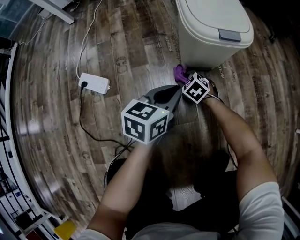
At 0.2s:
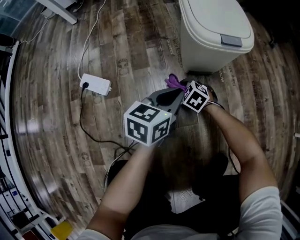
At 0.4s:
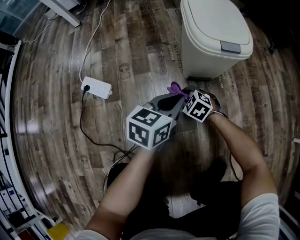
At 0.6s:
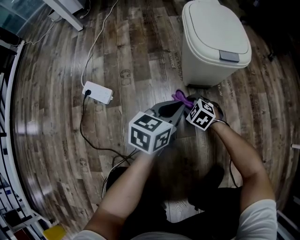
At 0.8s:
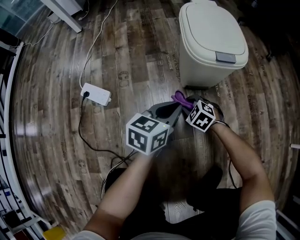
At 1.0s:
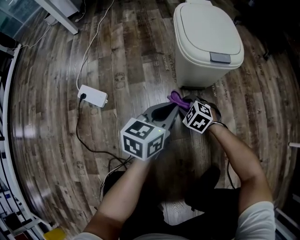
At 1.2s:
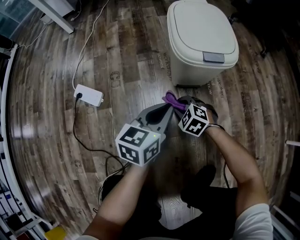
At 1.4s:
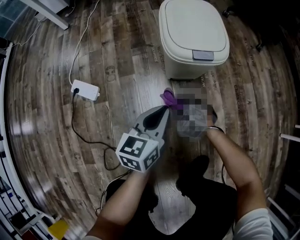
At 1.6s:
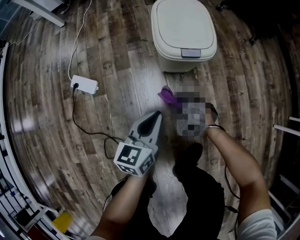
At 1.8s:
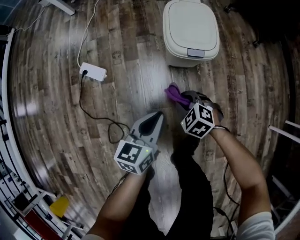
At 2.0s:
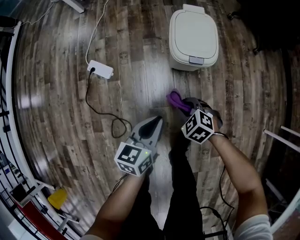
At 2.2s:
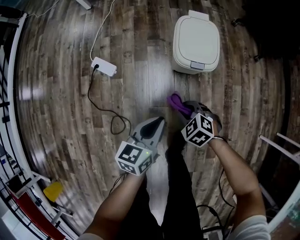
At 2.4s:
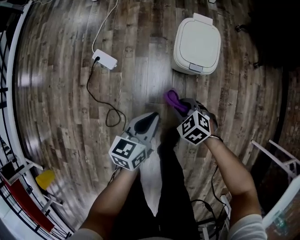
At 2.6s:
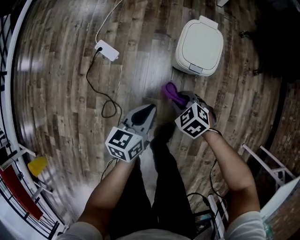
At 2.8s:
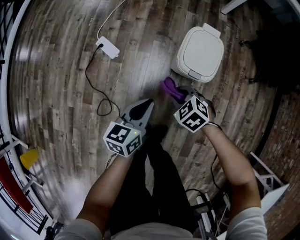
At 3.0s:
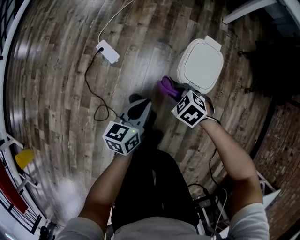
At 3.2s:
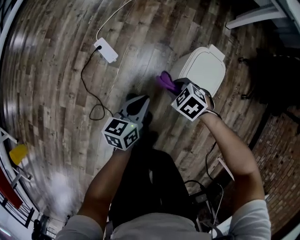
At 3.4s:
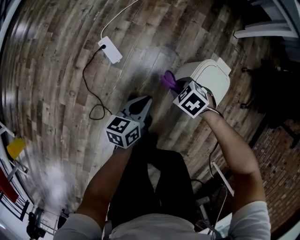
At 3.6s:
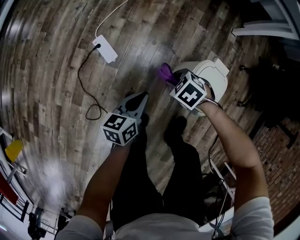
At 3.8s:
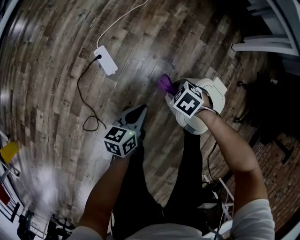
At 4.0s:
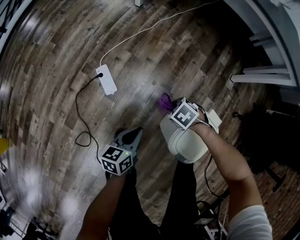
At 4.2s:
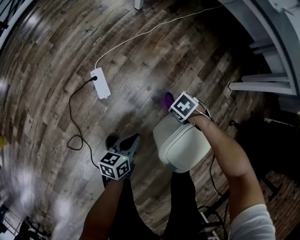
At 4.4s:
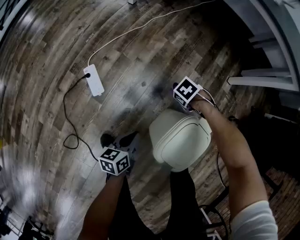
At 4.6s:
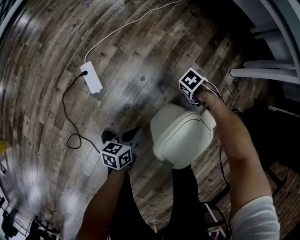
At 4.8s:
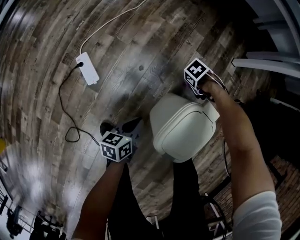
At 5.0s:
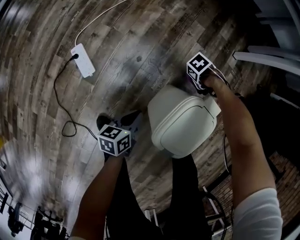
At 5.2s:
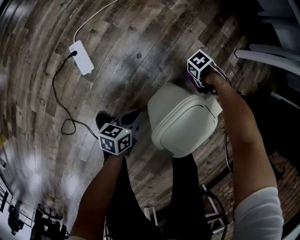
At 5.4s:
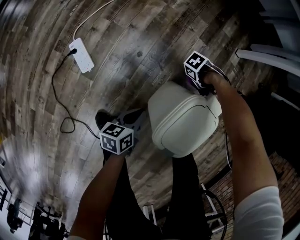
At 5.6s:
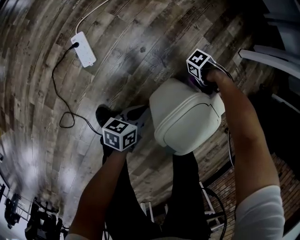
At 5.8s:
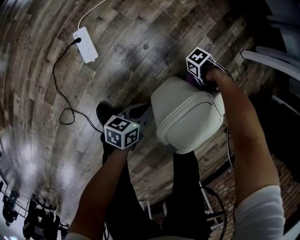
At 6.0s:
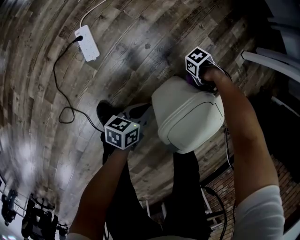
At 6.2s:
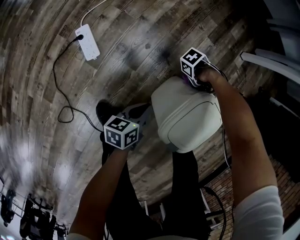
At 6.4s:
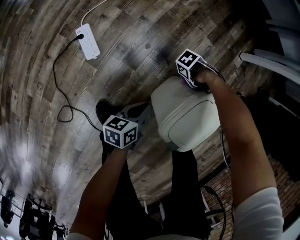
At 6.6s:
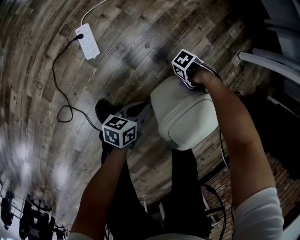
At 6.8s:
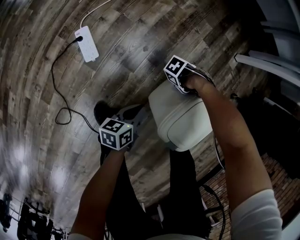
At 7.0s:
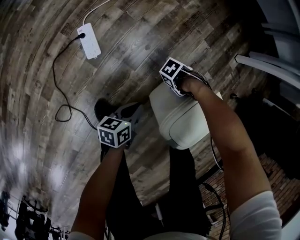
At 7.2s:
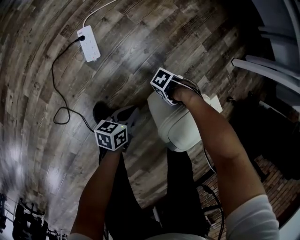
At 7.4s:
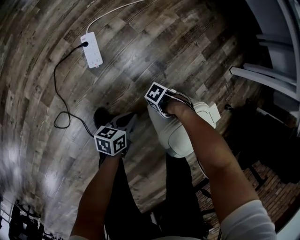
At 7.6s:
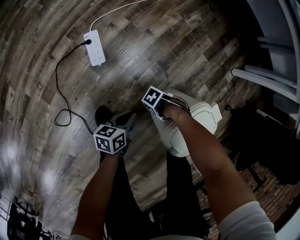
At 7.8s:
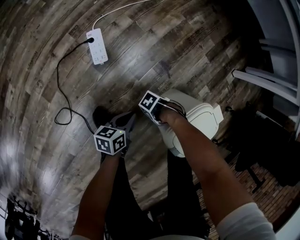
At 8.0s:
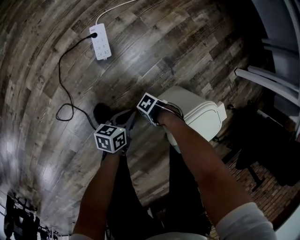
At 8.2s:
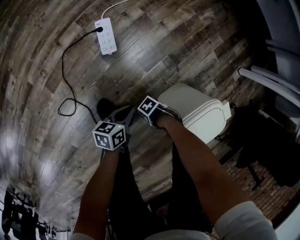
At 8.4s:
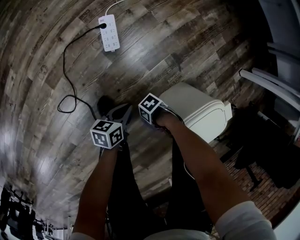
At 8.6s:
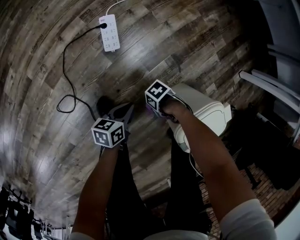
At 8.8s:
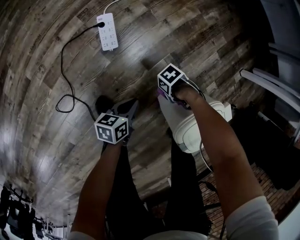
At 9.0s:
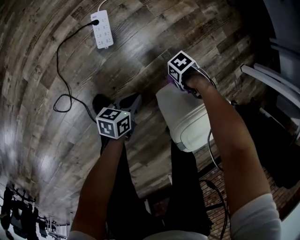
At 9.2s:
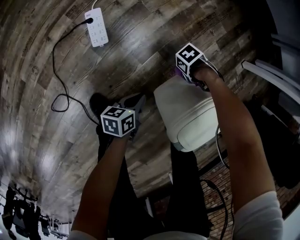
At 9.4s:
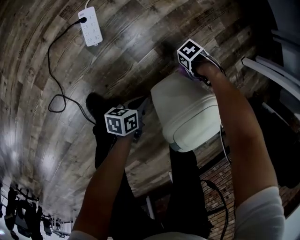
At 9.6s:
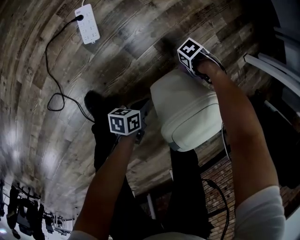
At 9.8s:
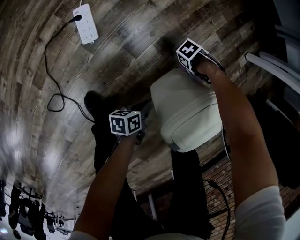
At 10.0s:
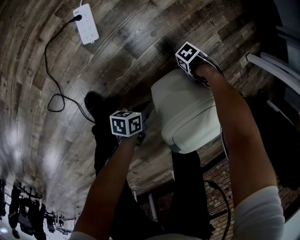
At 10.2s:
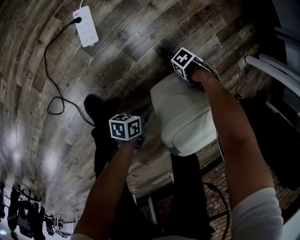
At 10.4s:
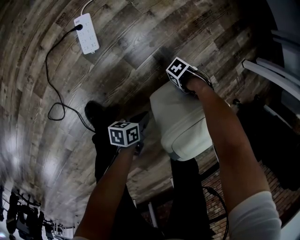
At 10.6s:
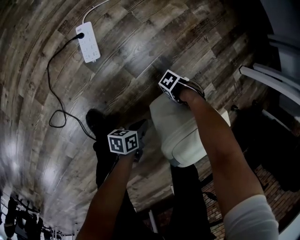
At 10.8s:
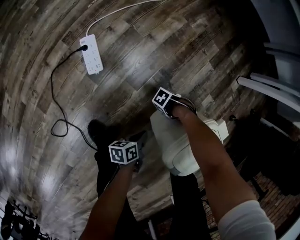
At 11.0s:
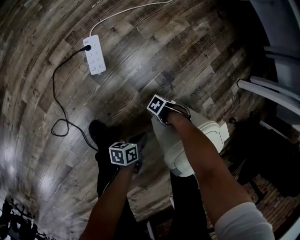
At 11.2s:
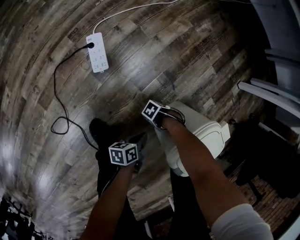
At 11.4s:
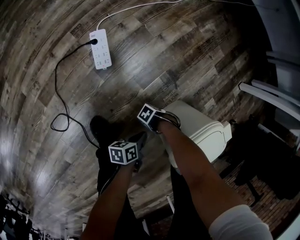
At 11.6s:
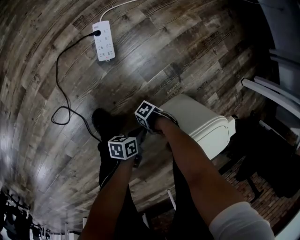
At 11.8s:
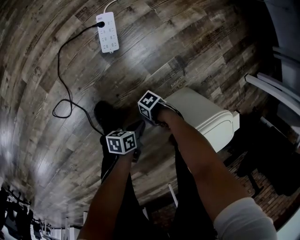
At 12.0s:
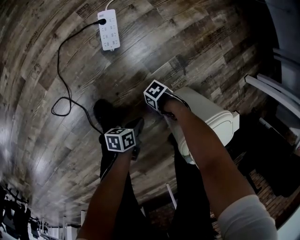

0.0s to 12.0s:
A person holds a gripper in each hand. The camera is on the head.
0.0s to 1.6s: The left gripper travels upward by some 10 cm.
1.6s to 3.0s: The left gripper goes roughly 20 cm upward, and swivels approximately 20 degrees.
3.0s to 4.4s: The left gripper travels downward by about 15 cm, and swivels roughly 30 degrees.
4.4s to 6.0s: The left gripper is displaced downward by roughly 5 cm.
6.0s to 7.6s: The left gripper moves roughly 10 cm.
9.0s to 10.4s: The left gripper shifts by about 15 cm.
10.4s to 12.0s: The left gripper moves approximately 10 cm.

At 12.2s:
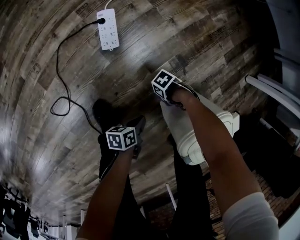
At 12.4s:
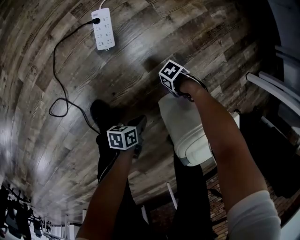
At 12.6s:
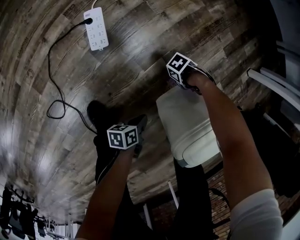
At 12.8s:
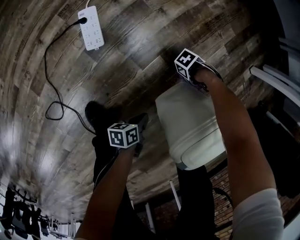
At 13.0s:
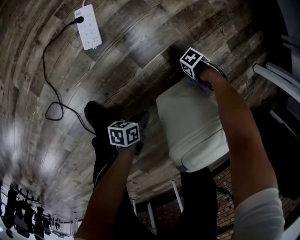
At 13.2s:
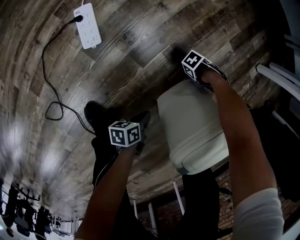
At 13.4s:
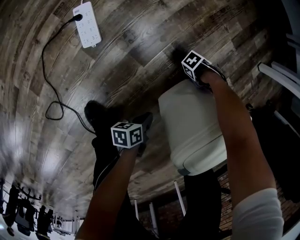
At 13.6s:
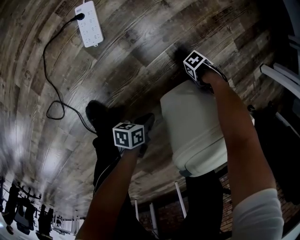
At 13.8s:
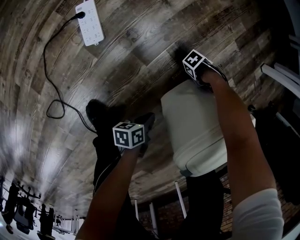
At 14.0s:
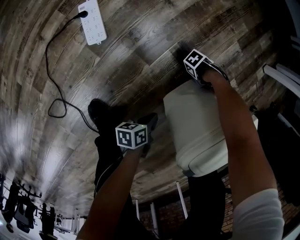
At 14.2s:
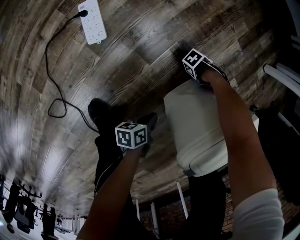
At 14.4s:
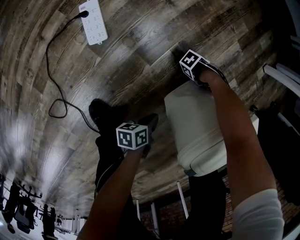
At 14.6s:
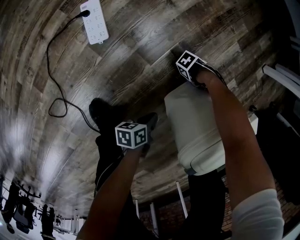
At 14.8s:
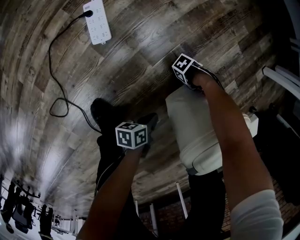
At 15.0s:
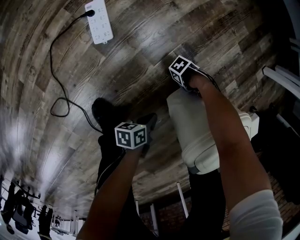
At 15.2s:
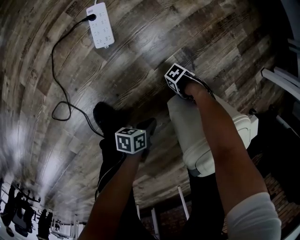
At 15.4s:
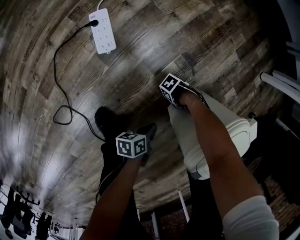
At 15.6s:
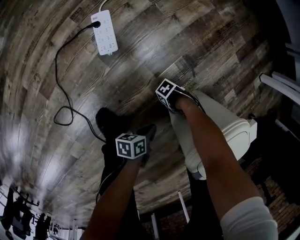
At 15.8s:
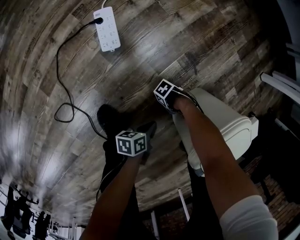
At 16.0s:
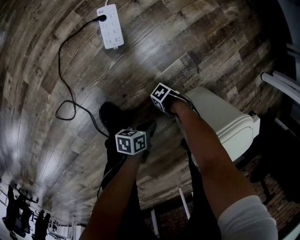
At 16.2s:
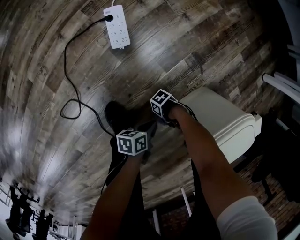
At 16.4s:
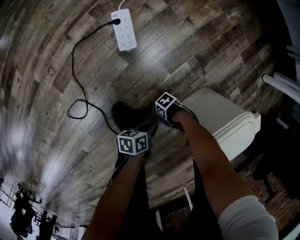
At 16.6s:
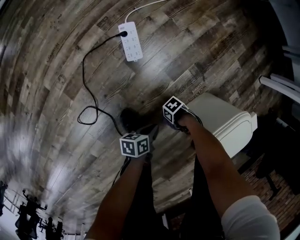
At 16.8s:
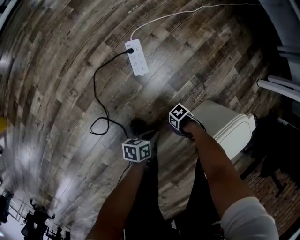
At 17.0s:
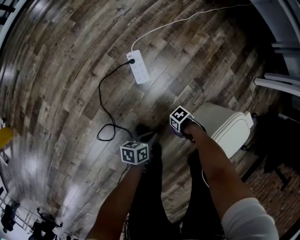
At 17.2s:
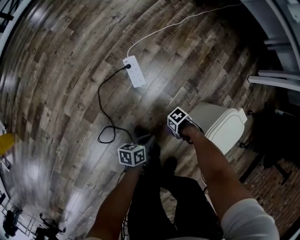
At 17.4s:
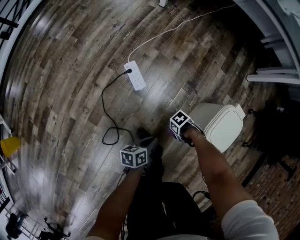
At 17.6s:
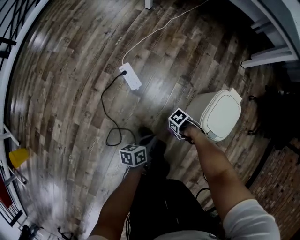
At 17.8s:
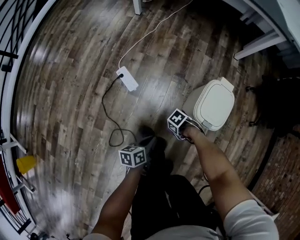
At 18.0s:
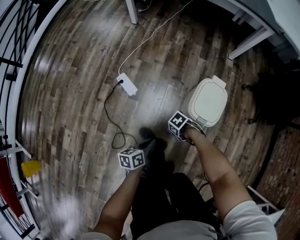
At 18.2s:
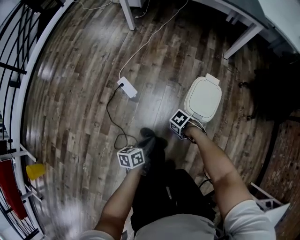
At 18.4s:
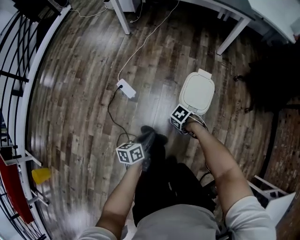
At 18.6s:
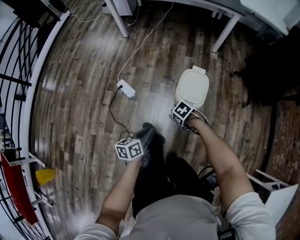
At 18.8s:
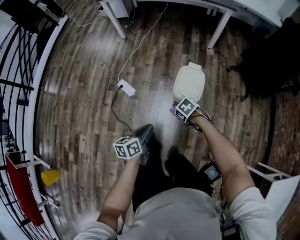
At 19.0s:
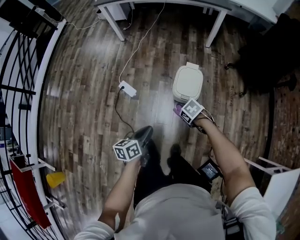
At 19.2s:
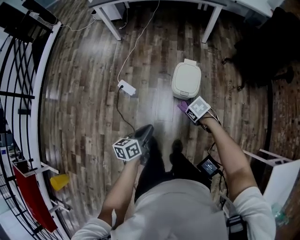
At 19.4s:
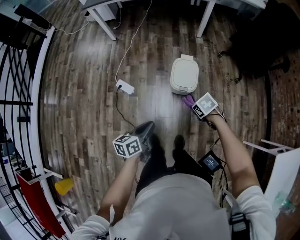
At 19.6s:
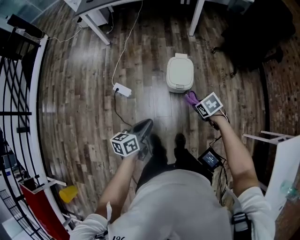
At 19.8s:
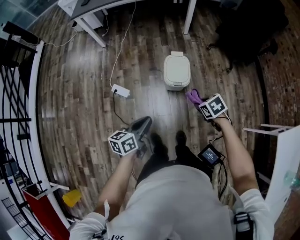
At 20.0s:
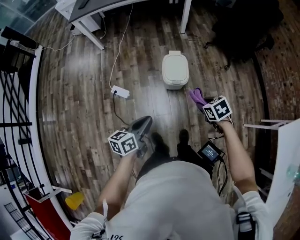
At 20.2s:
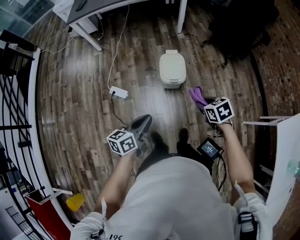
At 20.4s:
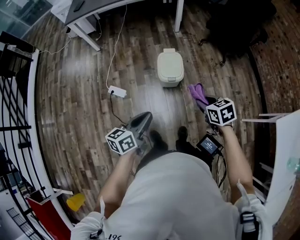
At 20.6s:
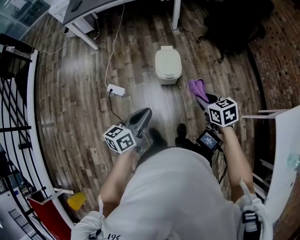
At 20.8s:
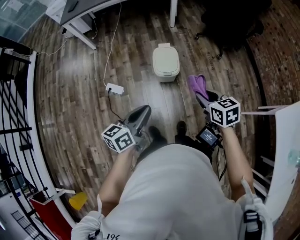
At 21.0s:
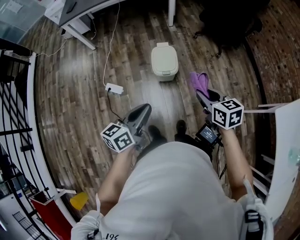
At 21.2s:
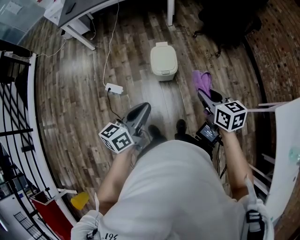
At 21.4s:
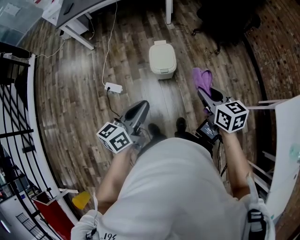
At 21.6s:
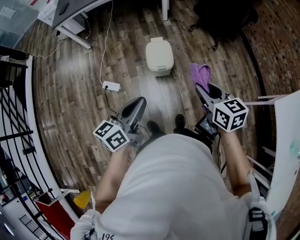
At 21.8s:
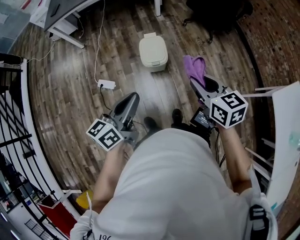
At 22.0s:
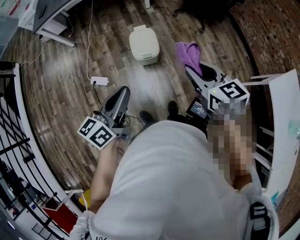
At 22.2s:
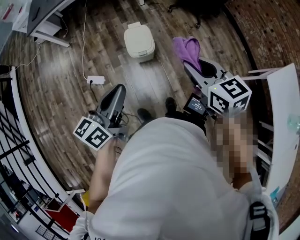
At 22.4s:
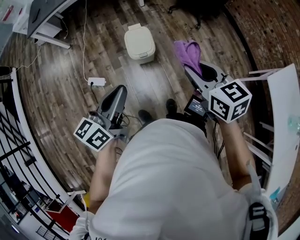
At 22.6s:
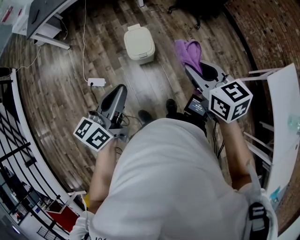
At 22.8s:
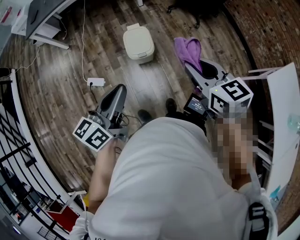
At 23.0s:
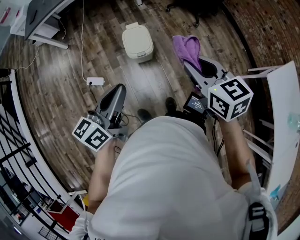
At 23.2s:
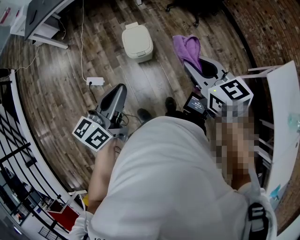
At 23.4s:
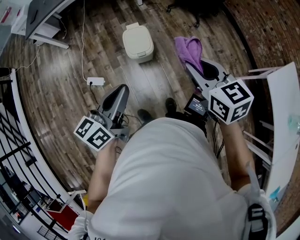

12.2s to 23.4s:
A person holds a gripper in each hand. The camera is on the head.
12.2s to 13.8s: The left gripper changes place by about 10 cm.
15.4s to 17.0s: The left gripper ends up about 25 cm from where it was.
17.0s to 18.6s: The left gripper shifts roughly 35 cm upward, and rotates about 30 degrees.
18.6s to 20.2s: The left gripper shifts roughly 20 cm upward, and changes its angle by roughly 30 degrees.
20.2s to 21.8s: The left gripper moves upward, approximately 10 cm.

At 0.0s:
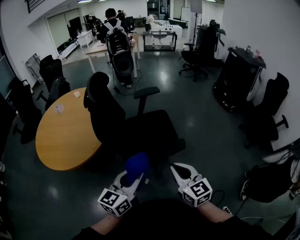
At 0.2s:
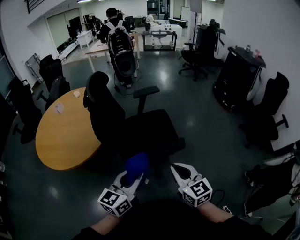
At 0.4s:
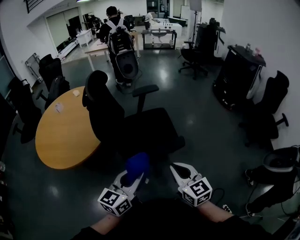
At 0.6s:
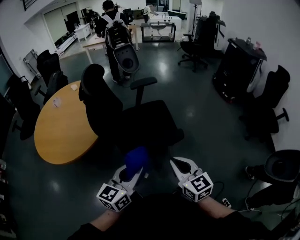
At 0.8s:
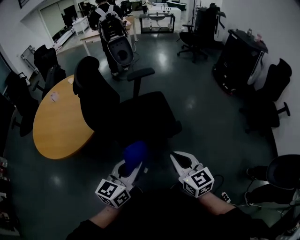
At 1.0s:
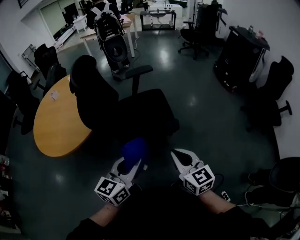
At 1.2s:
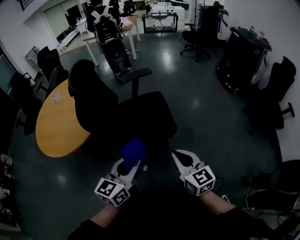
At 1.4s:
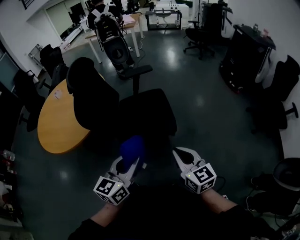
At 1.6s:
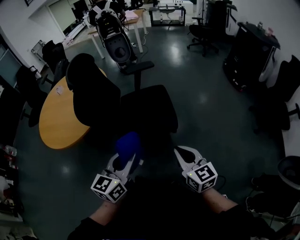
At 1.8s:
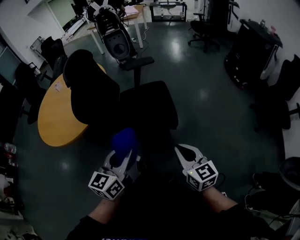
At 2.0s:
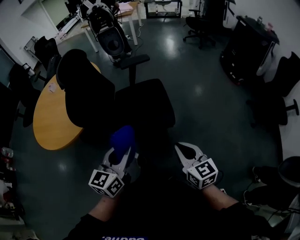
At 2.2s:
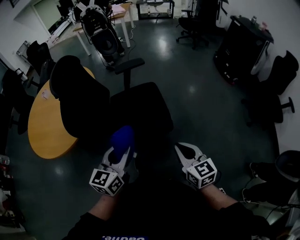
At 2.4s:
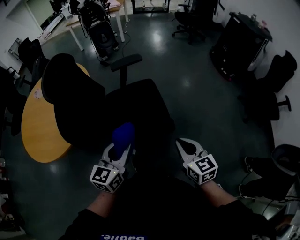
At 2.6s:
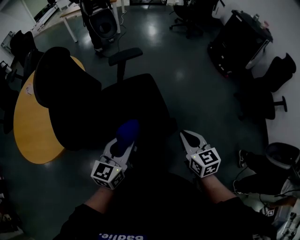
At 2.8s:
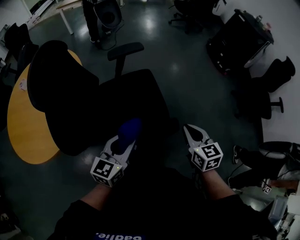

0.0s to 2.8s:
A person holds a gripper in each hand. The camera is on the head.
0.0s to 1.4s: Both grippers move to the right, about 10 cm.
1.4s to 2.8s: Both grippers travel together forward and downward, roughly 20 cm. The right gripper turns by about 20 degrees.
